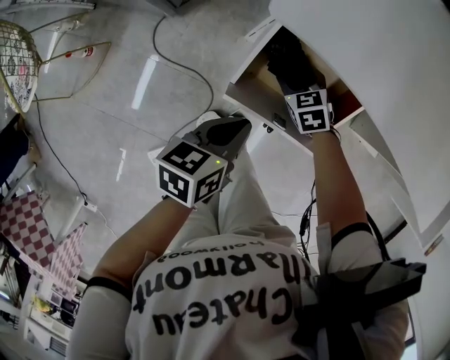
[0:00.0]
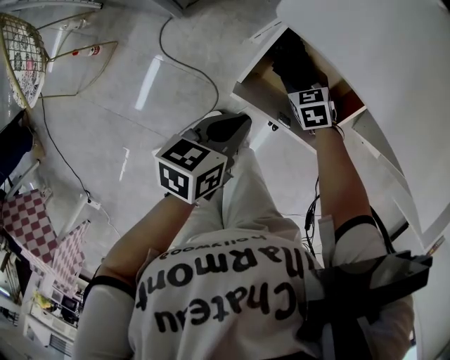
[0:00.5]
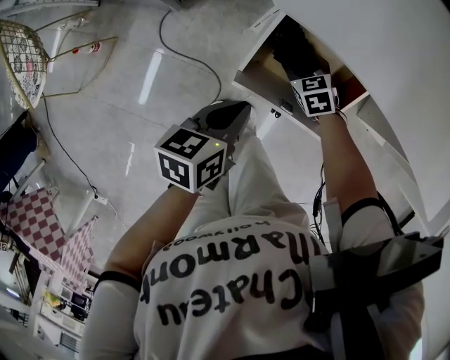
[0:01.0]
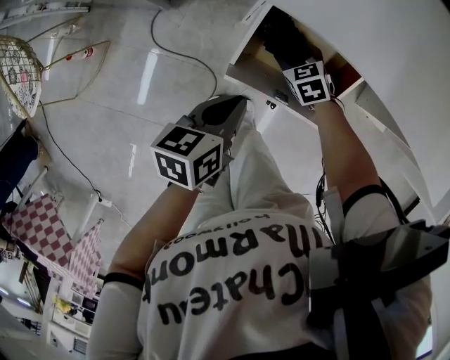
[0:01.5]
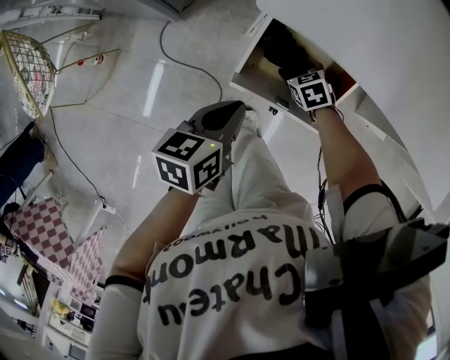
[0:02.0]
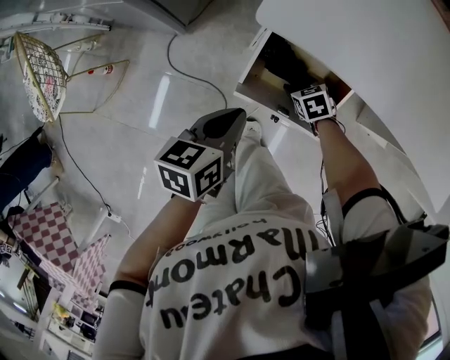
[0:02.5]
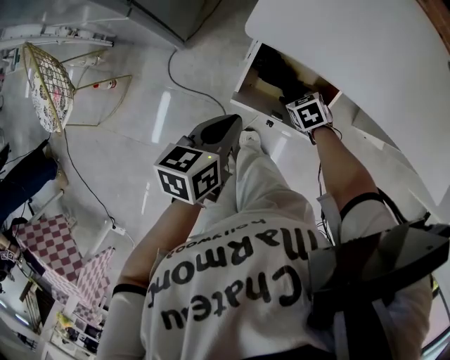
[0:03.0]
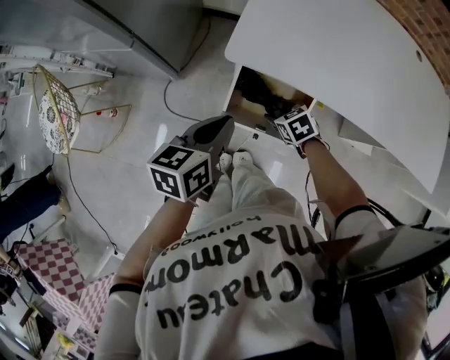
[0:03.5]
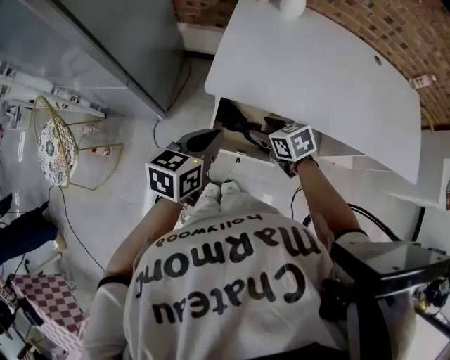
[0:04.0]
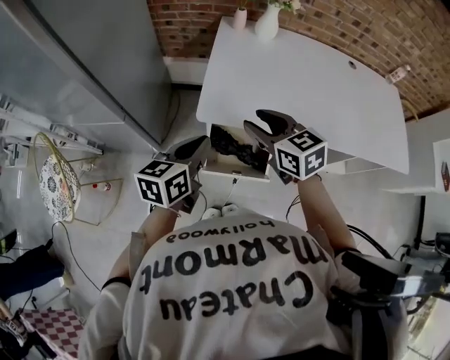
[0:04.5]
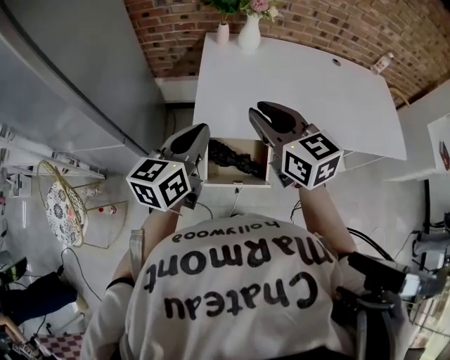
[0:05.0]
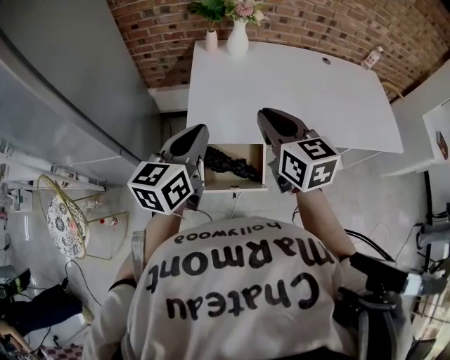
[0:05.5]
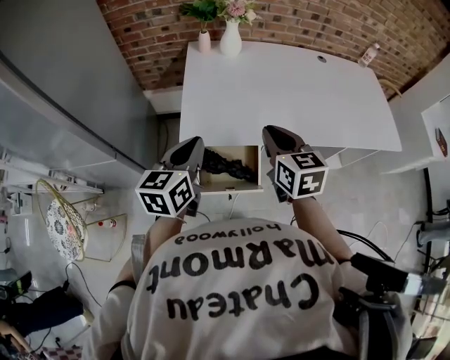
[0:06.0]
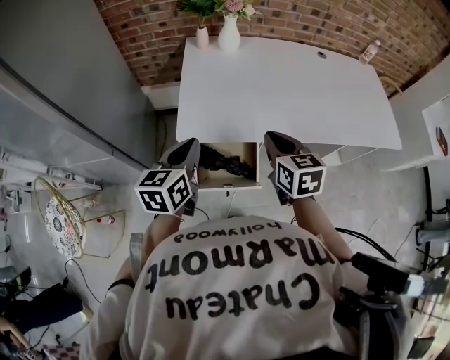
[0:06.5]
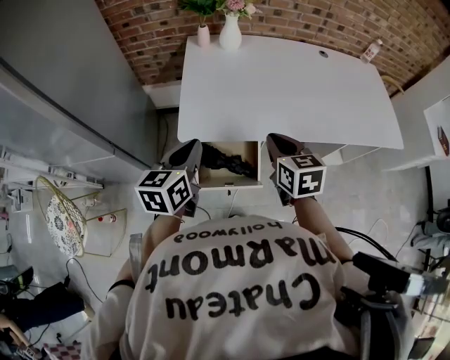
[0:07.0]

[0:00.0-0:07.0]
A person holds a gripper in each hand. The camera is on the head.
0:00.0 to 0:02.0: The left gripper moves some 5 cm.
0:02.0 to 0:03.5: Both grippers travel together upward, roughly 15 cm.
0:03.5 to 0:05.0: The left gripper moves upward, about 20 cm, and turns by about 30 degrees; the right gripper goes roughly 40 cm upward, points its fingers roughly 50 degrees further upward, and closes up.
0:05.0 to 0:07.0: The right gripper is displaced to the right and downward by roughly 15 cm, and changes its angle by about 30 degrees, while the left gripper heads downward, covering about 5 cm.

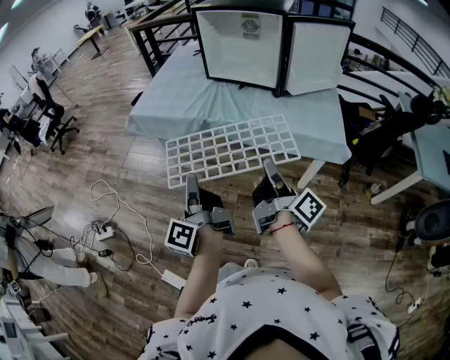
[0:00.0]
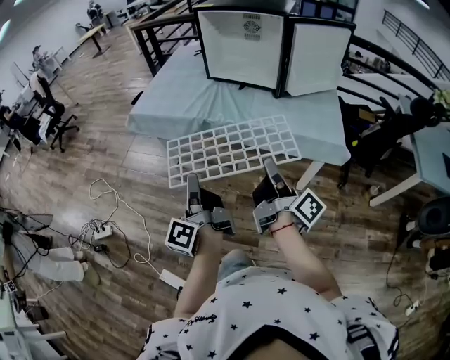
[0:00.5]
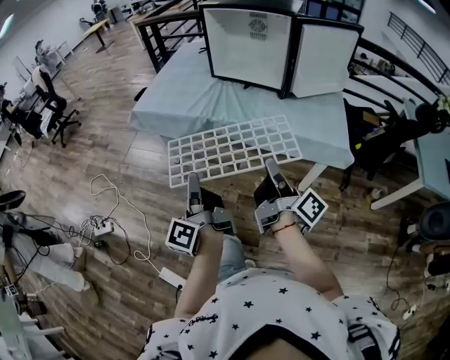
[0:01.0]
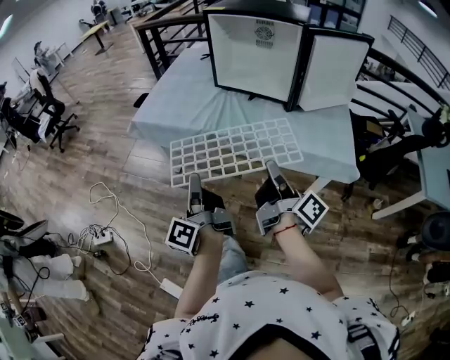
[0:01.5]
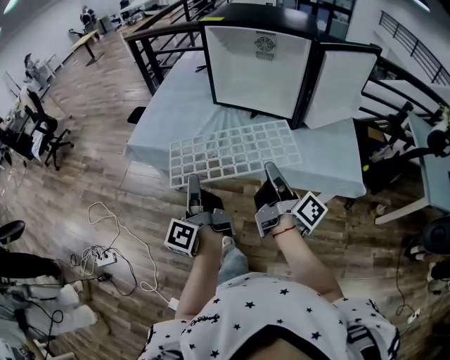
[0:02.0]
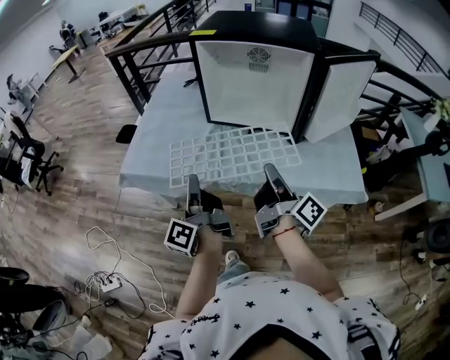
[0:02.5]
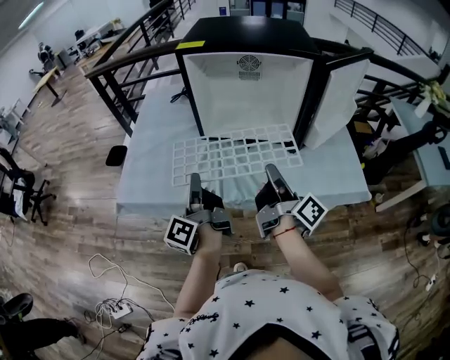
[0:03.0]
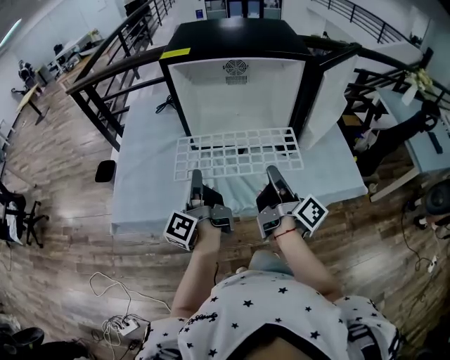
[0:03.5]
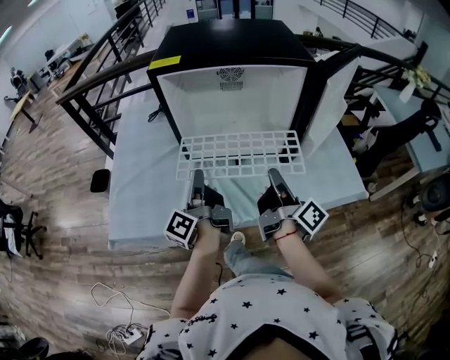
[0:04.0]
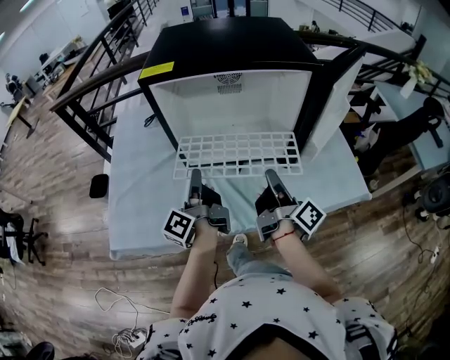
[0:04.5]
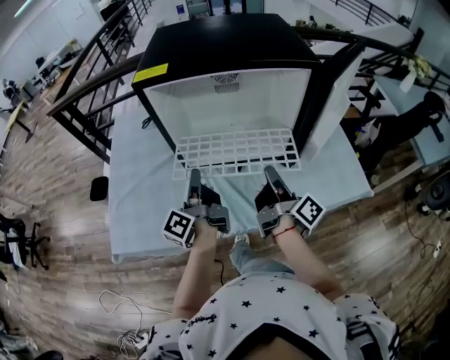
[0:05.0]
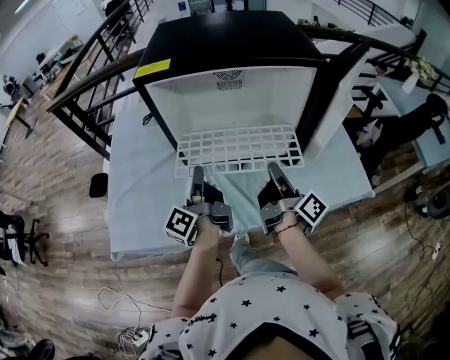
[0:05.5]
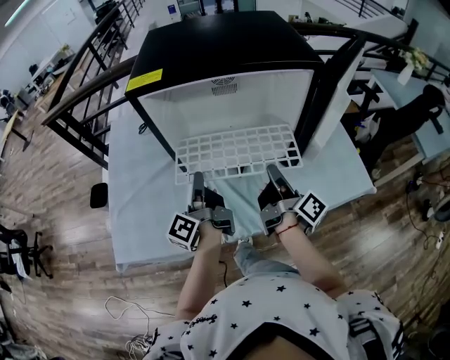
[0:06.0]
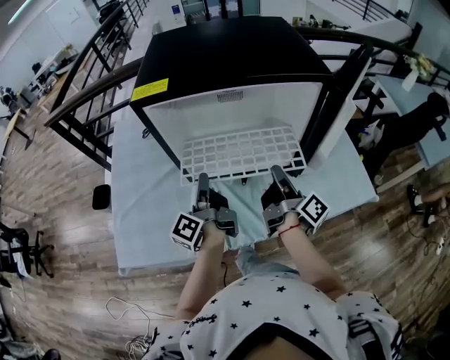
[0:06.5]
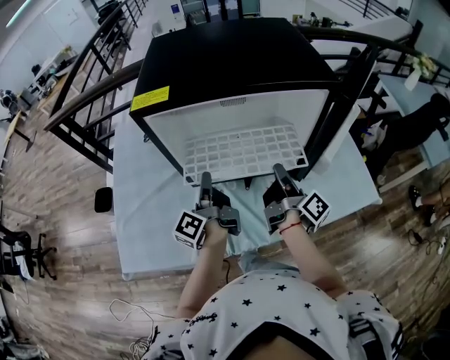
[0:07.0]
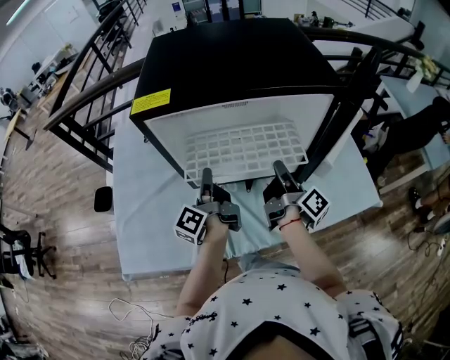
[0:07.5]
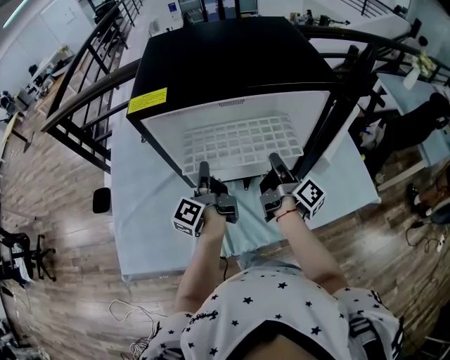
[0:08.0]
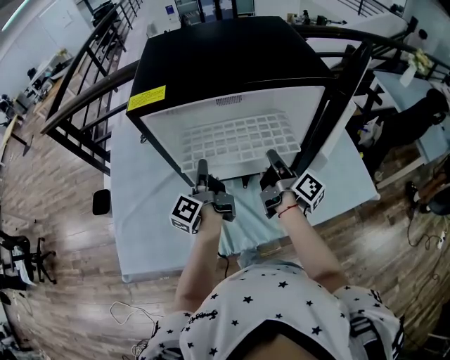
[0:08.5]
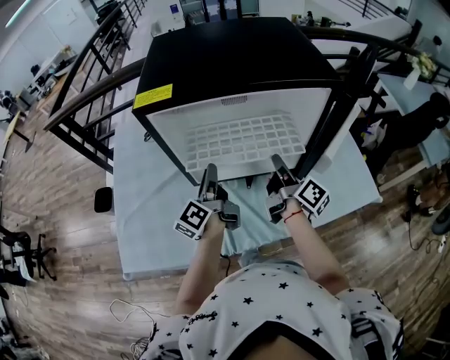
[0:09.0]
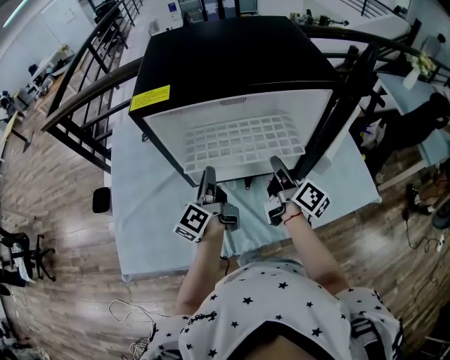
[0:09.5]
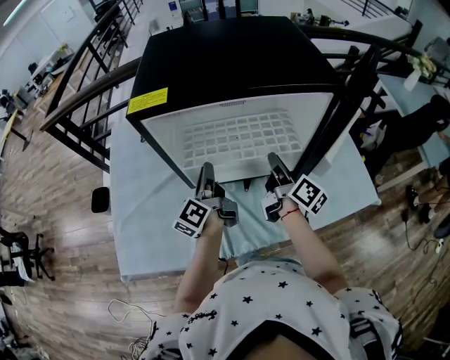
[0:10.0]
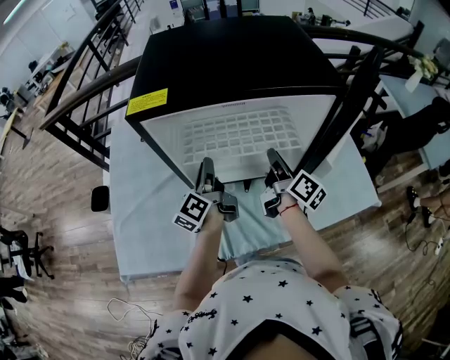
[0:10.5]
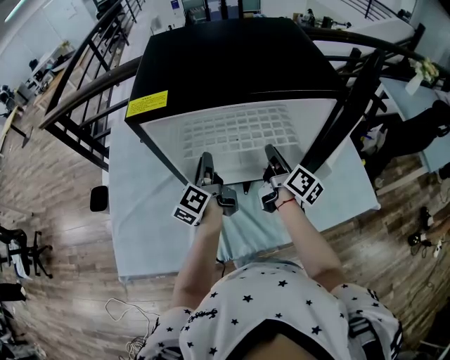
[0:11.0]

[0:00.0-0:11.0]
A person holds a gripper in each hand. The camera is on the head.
0:00.0 to 0:02.0: Both grippers move forward, about 20 cm.
0:02.0 to 0:03.5: The left gripper shifts some 25 cm forward, and swivels some 20 degrees; the right gripper is displaced forward by roughly 20 cm, and changes its angle by about 20 degrees.
0:03.5 to 0:05.5: The two grippers go some 10 cm forward.
0:05.5 to 0:07.5: The two grippers go about 10 cm forward.
0:07.5 to 0:09.0: The grippers stay close to where they were, moving slightly.
0:09.0 to 0:11.0: The grippers both shift forward by about 5 cm.

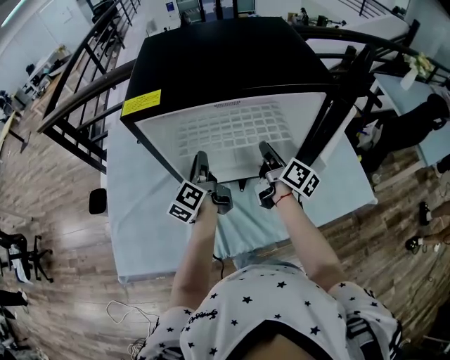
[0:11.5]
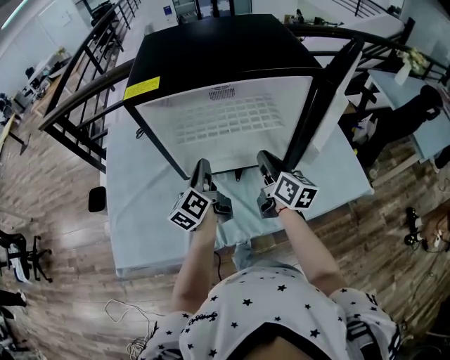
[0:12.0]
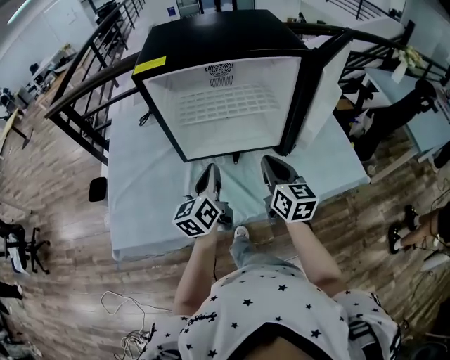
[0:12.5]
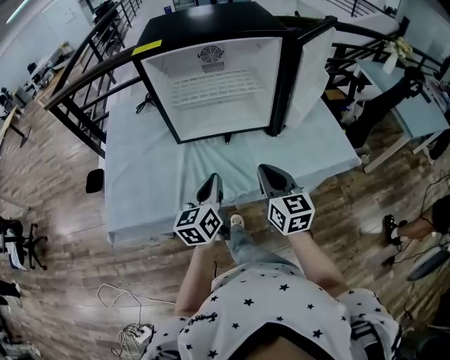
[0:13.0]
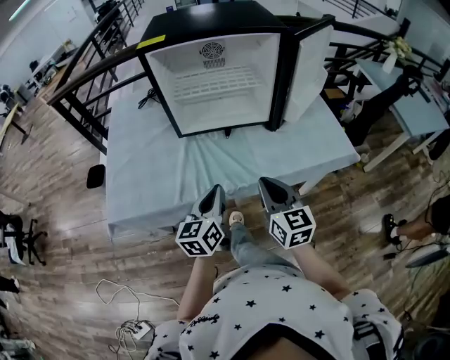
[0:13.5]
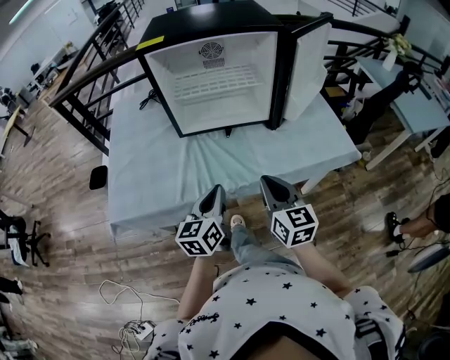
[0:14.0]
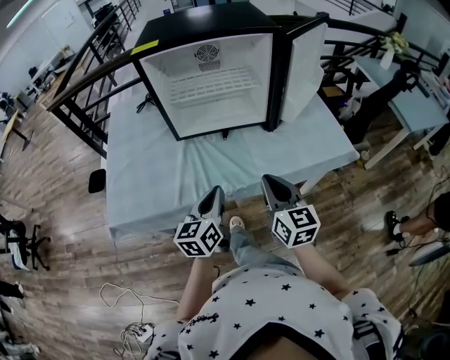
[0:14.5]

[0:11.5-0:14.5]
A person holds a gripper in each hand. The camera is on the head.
0:11.5 to 0:13.0: Both grippers travel together backward, approximately 30 cm. The left gripper changes its angle by approximately 40 degrees. The right gripper twists some 50 degrees counterclockwise, seen from behind.
0:13.0 to 0:14.5: Both grippers move backward, approximately 5 cm.

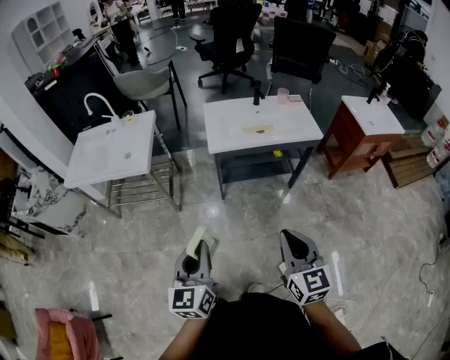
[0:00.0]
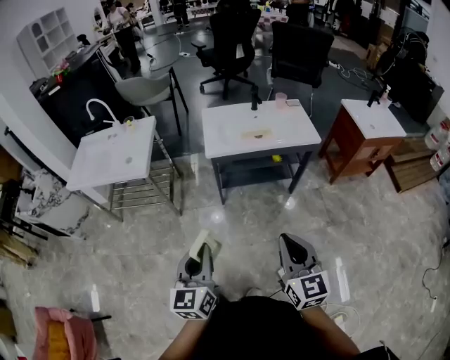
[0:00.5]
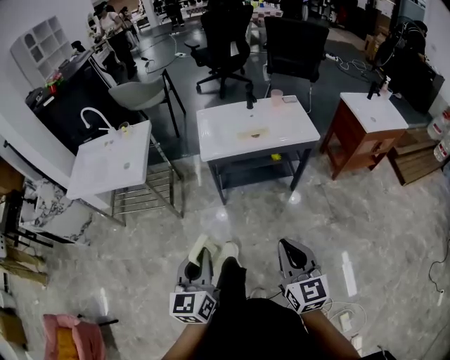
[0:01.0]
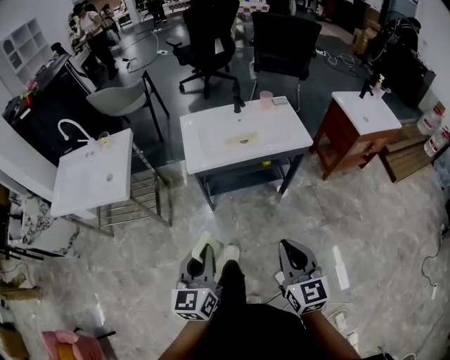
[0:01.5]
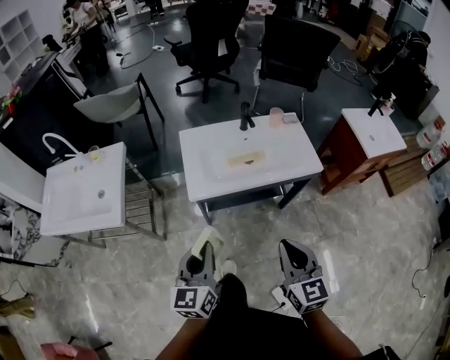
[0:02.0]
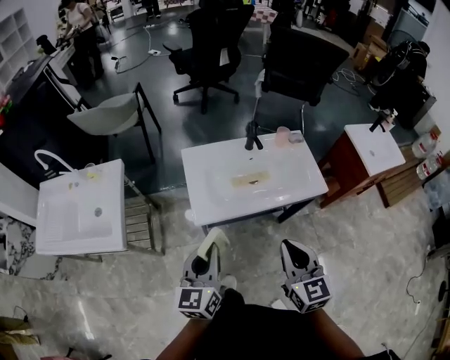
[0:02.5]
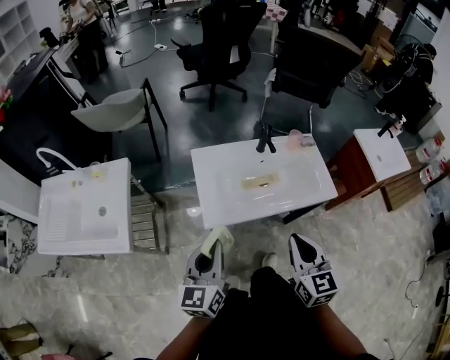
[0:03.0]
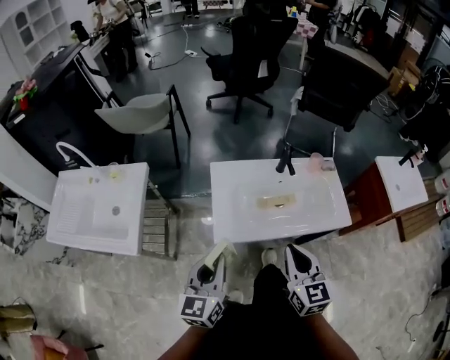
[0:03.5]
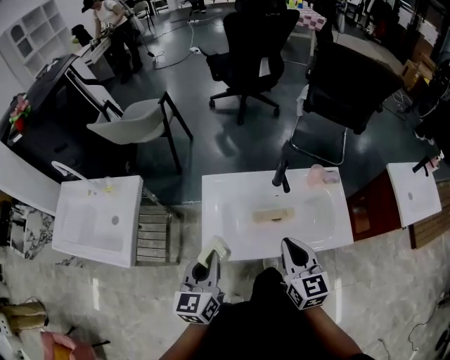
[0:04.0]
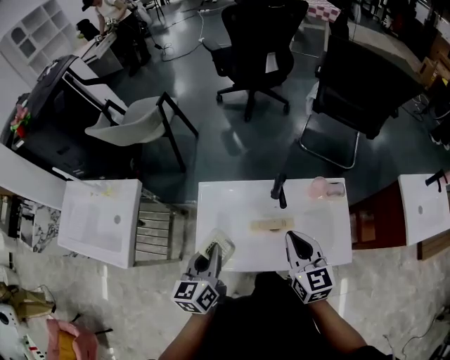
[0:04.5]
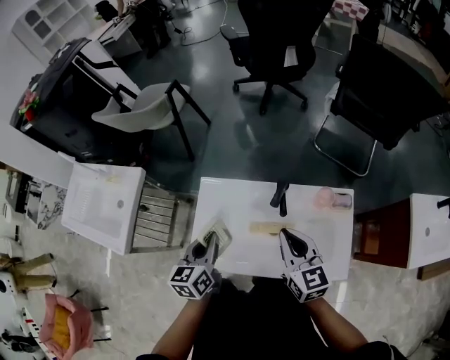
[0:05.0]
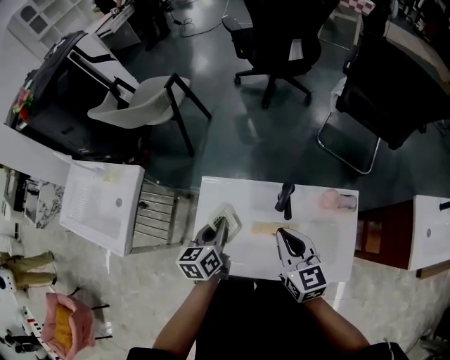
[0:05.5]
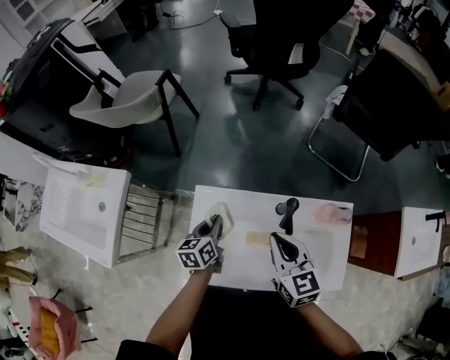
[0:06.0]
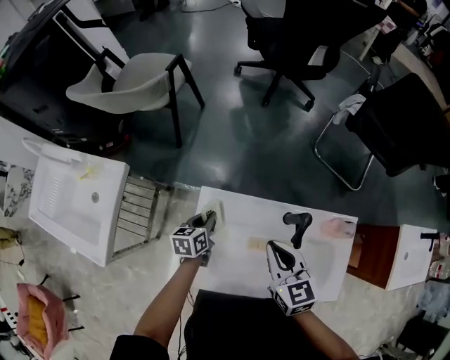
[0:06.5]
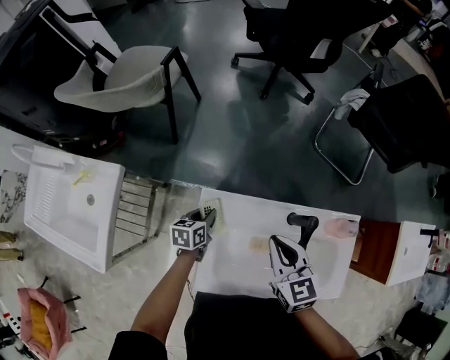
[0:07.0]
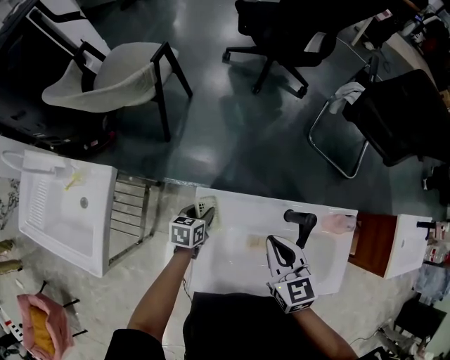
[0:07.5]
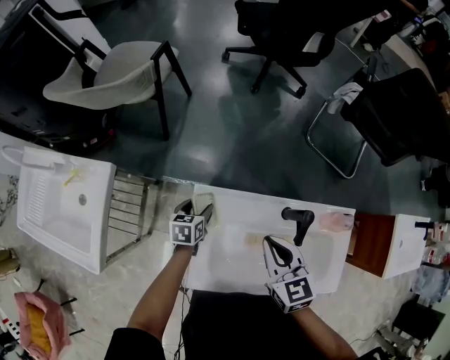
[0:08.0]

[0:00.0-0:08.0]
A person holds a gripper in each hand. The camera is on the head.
0:00.0 to 0:02.0: The grippers both shift forward by about 30 cm.
0:02.0 to 0:04.0: The two grippers go roughly 30 cm forward.
0:04.0 to 0:06.0: The left gripper is displaced forward and downward by approximately 30 cm, and rotates about 30 degrees. Meanwhile the right gripper shifts approximately 20 cm forward.
0:06.0 to 0:08.0: The left gripper is displaced downward, to the left and forward by roughly 15 cm, swivels roughly 20 degrees, and opens. The right gripper travels to the left and downward by some 10 cm.
